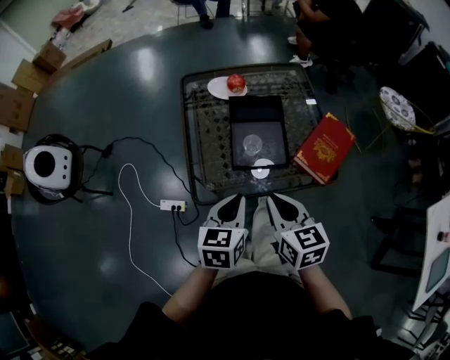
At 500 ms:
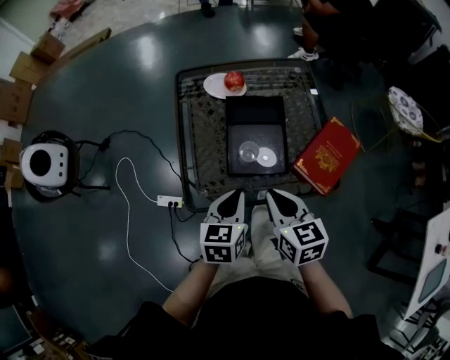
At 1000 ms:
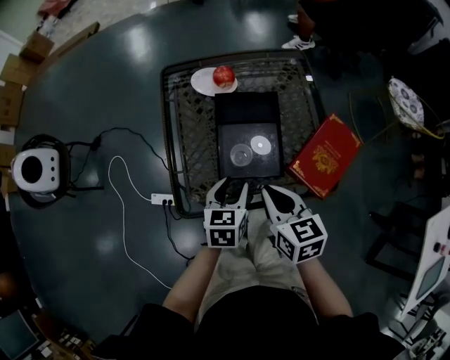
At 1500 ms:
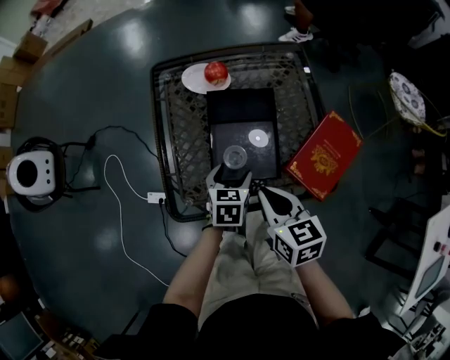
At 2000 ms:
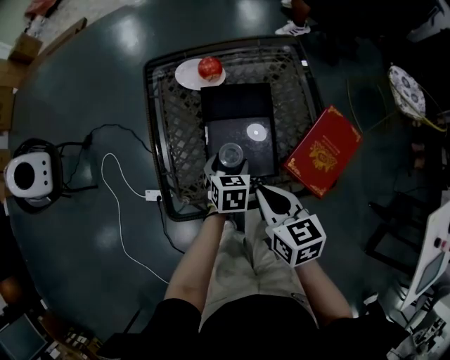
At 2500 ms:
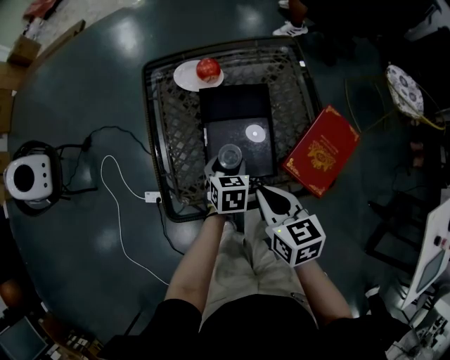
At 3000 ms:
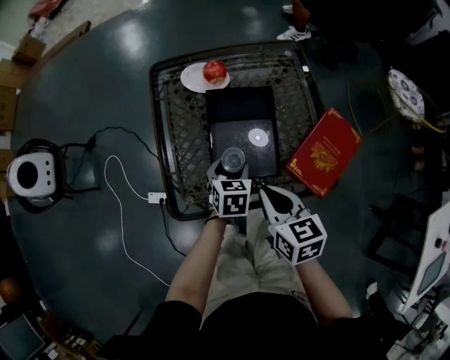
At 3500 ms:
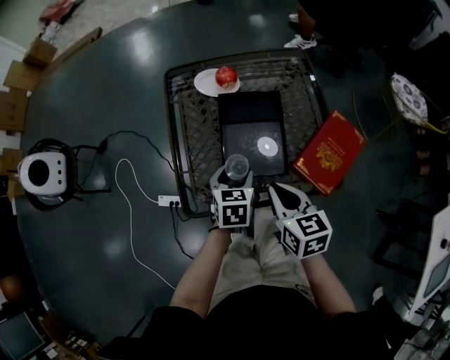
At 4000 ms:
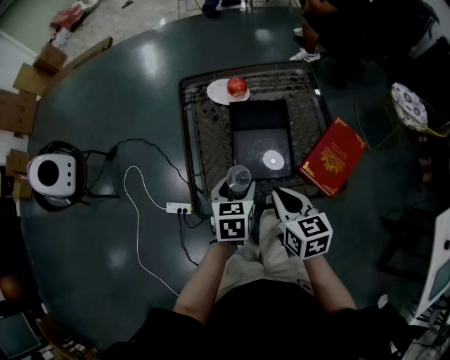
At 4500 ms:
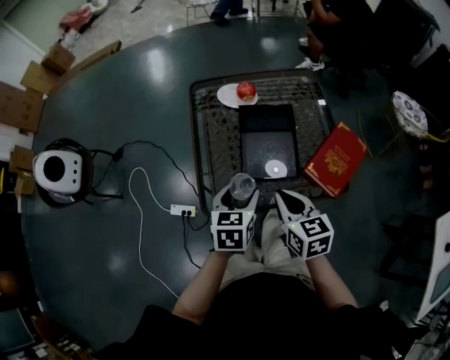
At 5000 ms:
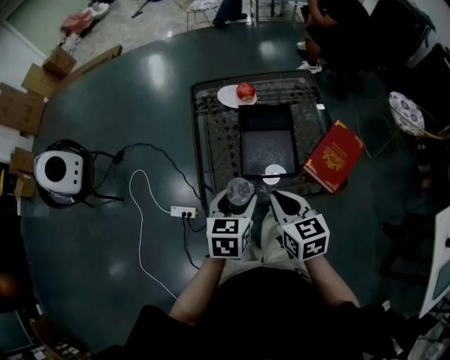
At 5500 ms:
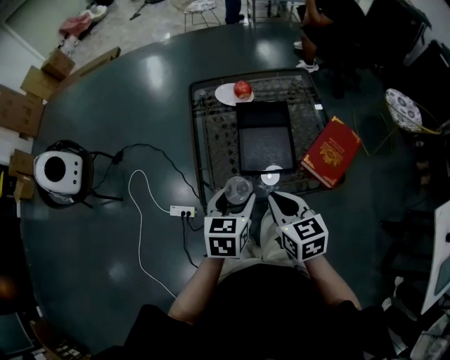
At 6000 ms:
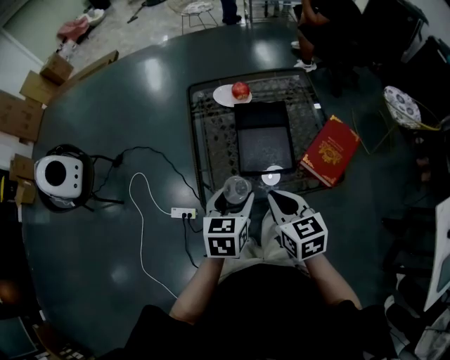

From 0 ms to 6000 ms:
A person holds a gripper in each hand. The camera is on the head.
From 0 ms to 2000 ms: The right gripper is displaced forward and downward by some 15 cm. Meanwhile the left gripper heads downward and forward, covering about 25 cm, changes its angle by about 20 degrees, and opens up.
From 2000 ms to 4000 ms: The left gripper shifts about 15 cm upward, backward and to the left.
From 4000 ms to 6000 ms: The right gripper shifts some 5 cm backward, while the left gripper heads backward and upward, covering roughly 10 cm.

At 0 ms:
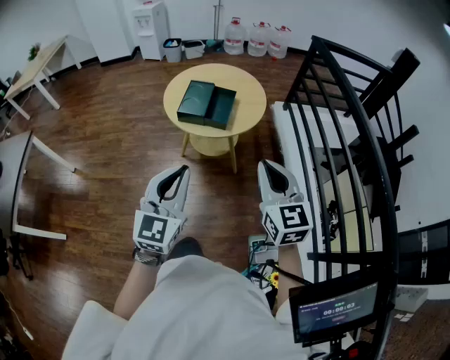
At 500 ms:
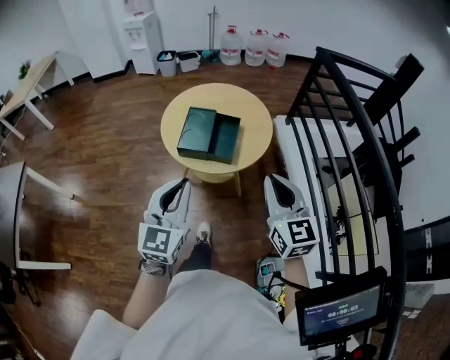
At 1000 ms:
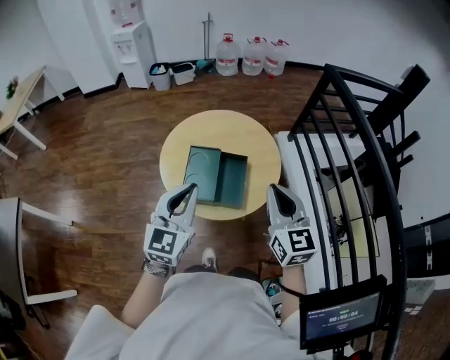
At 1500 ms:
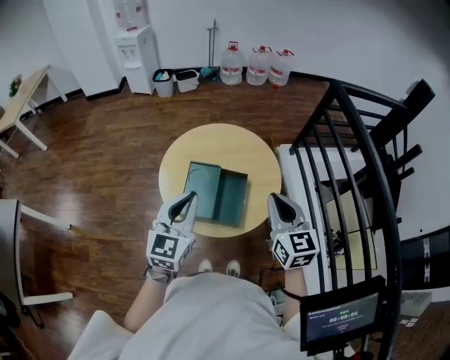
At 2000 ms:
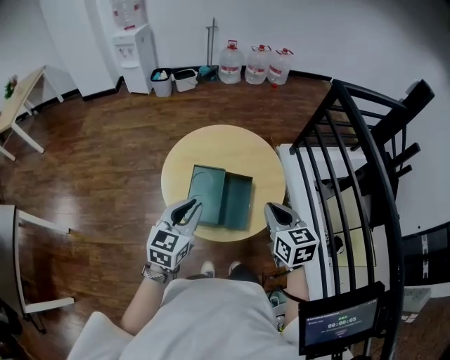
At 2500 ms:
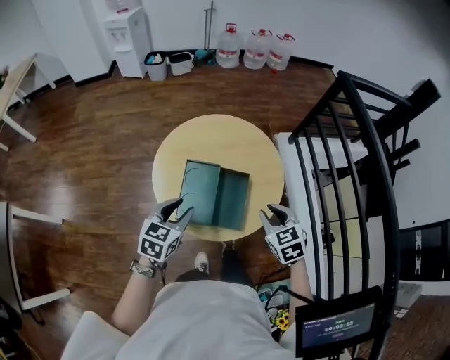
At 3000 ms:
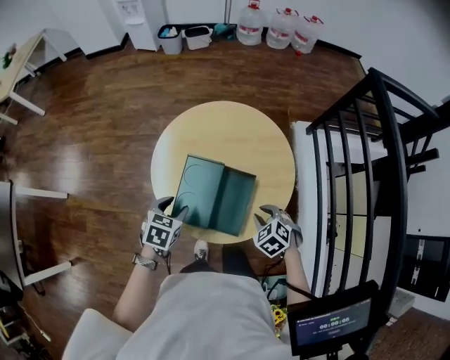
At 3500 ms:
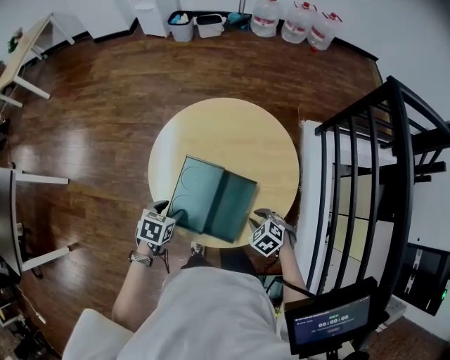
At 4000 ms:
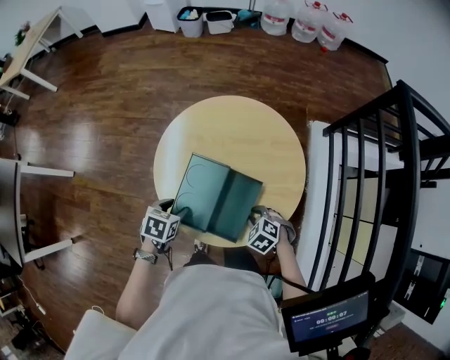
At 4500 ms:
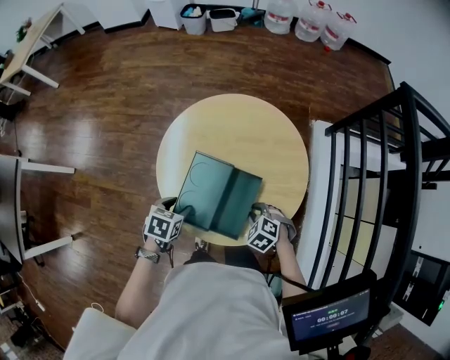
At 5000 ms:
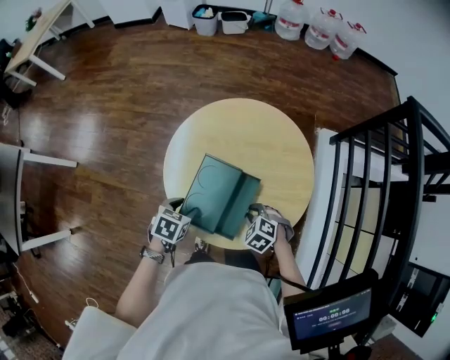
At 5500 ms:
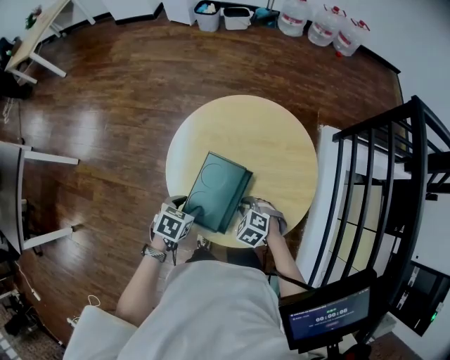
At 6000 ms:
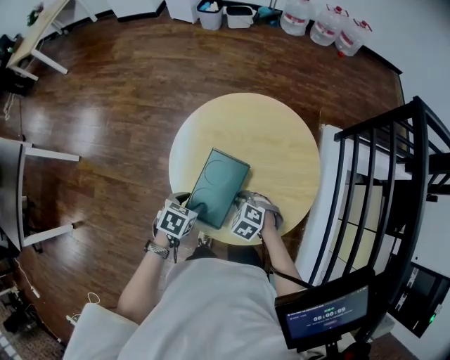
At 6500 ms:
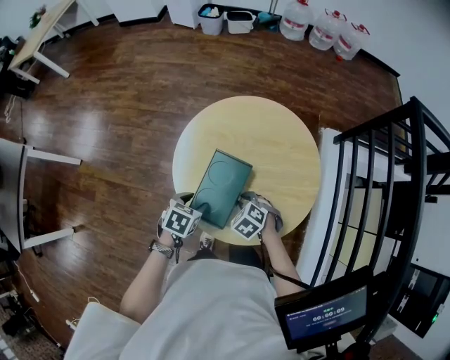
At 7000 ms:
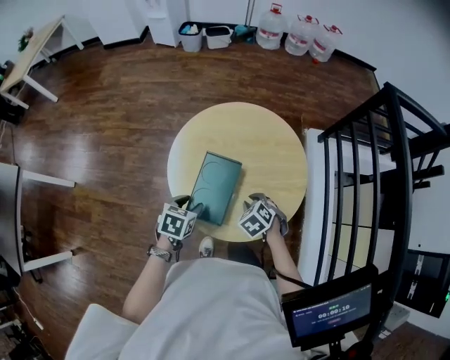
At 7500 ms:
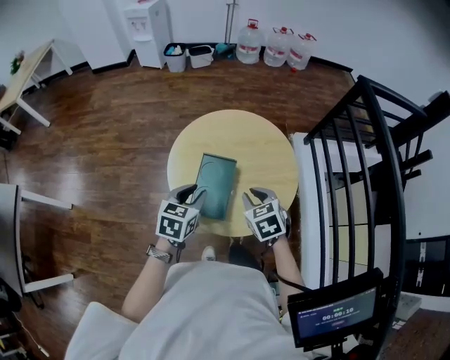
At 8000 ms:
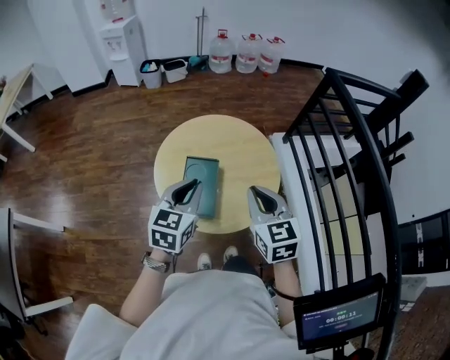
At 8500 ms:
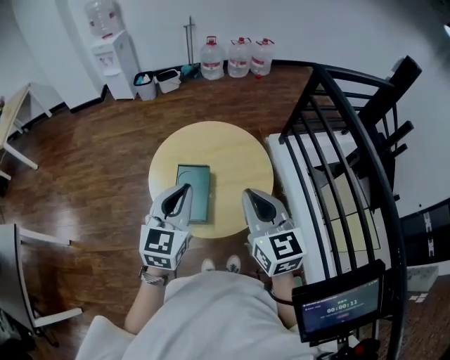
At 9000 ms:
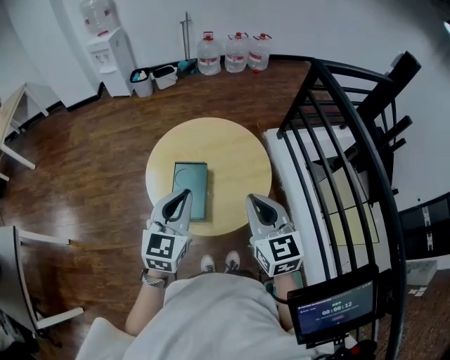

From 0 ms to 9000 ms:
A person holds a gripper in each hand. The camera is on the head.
From 0 ms to 2000 ms: The grippers both shift forward by roughly 30 cm. The left gripper rotates roughly 20 degrees; the right gripper turns by about 20 degrees.
From 2000 ms to 4500 ms: The grippers both shift downward by roughly 25 cm. The left gripper points its fingers roughly 40 degrees further downward, and opens its fingers. The right gripper angles its fingers downward, by approximately 40 degrees.
From 4500 ms to 7000 ms: The right gripper changes place by approximately 10 cm.
From 7000 ms to 9000 ms: The grippers both shift upward by approximately 30 cm. The right gripper tips its fingers upward by roughly 50 degrees; the left gripper tips its fingers upward by roughly 40 degrees, and closes.

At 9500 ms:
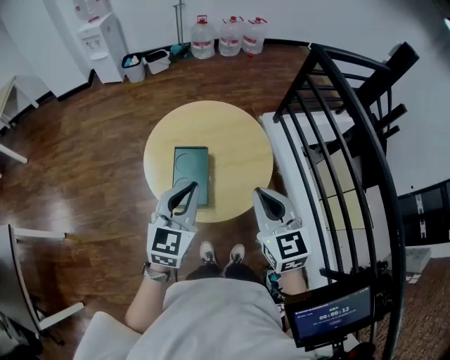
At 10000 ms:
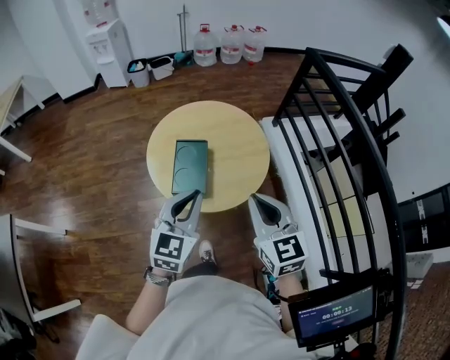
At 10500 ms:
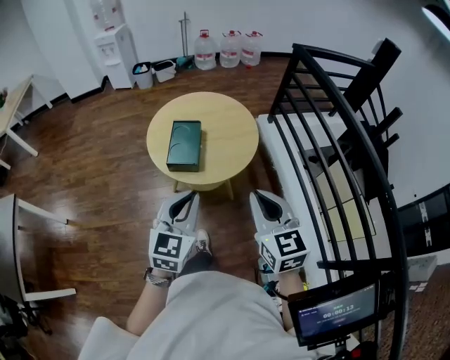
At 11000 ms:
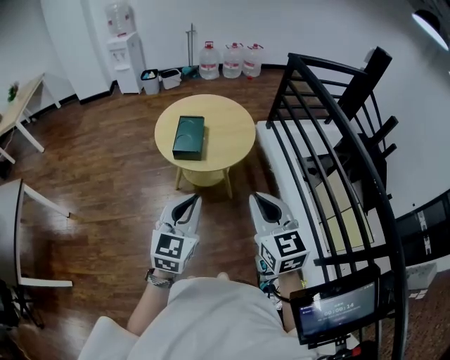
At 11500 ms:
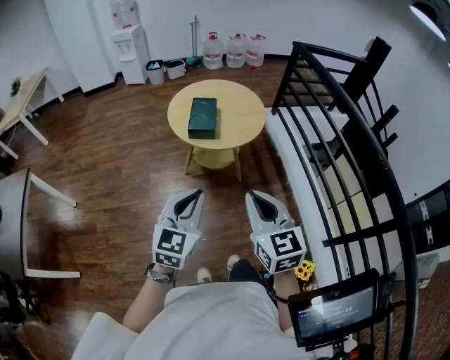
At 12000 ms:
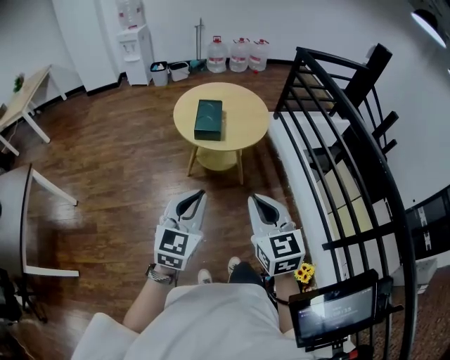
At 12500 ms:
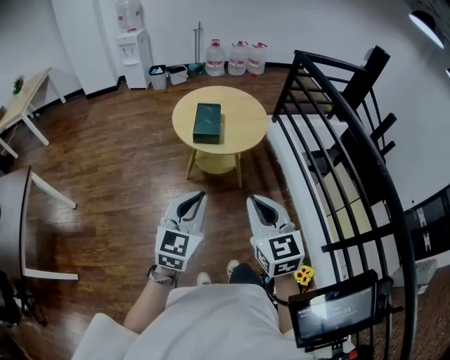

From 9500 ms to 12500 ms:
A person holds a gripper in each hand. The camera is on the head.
From 9500 ms to 11000 ms: The two grippers go approximately 25 cm backward.
From 11000 ms to 12500 ms: The two grippers go roughly 10 cm backward and to the left.

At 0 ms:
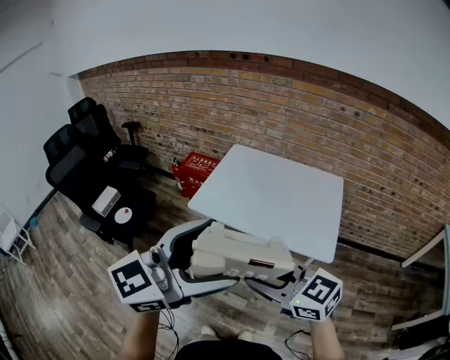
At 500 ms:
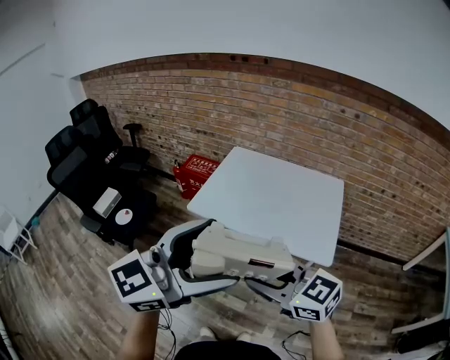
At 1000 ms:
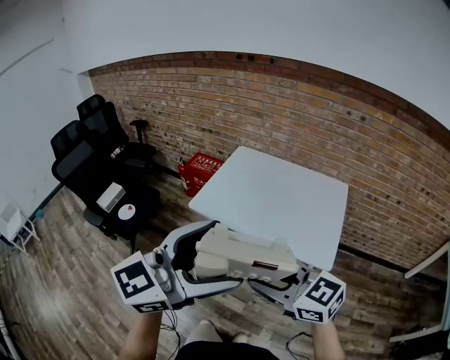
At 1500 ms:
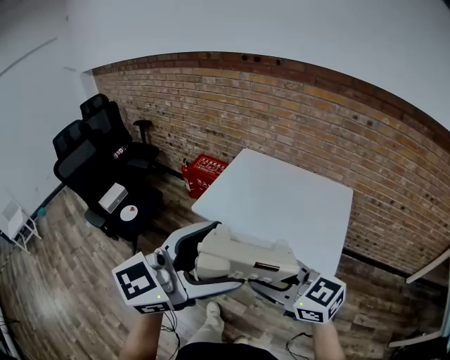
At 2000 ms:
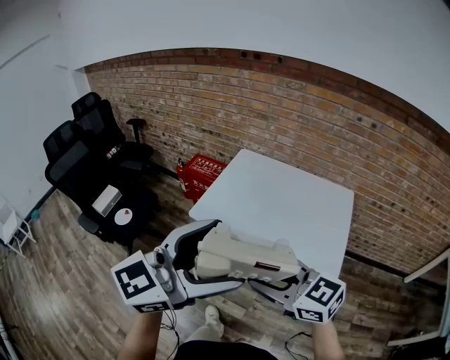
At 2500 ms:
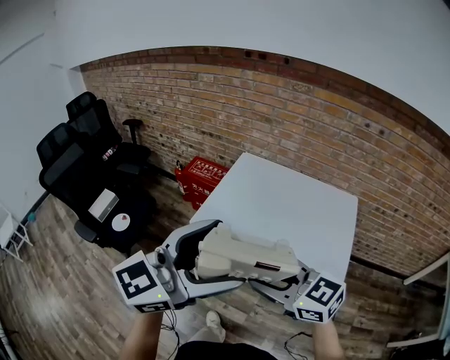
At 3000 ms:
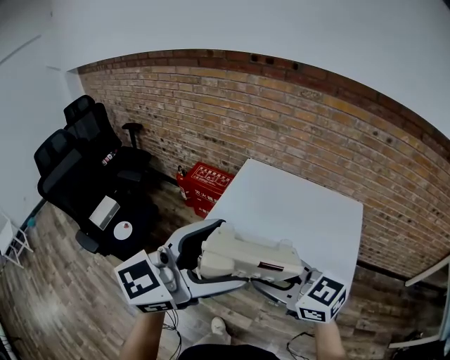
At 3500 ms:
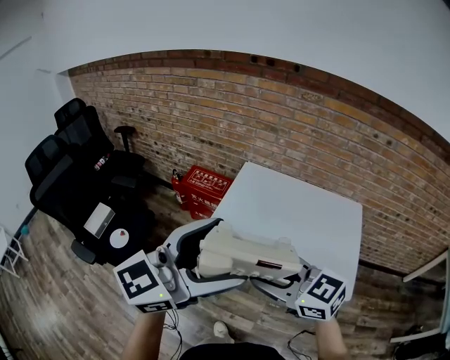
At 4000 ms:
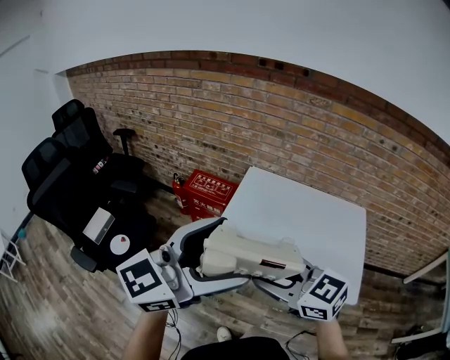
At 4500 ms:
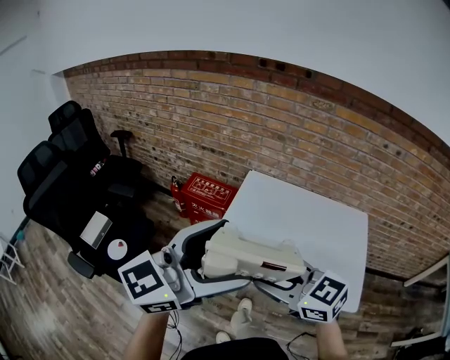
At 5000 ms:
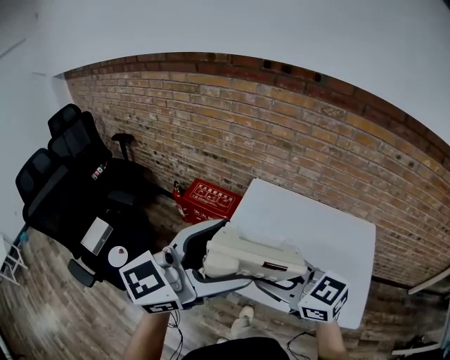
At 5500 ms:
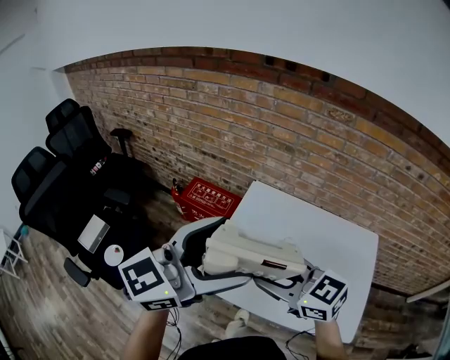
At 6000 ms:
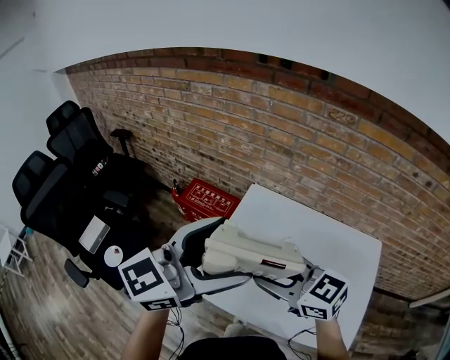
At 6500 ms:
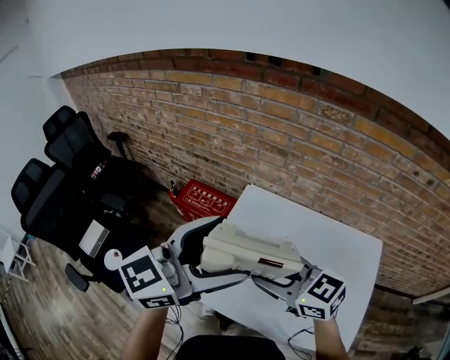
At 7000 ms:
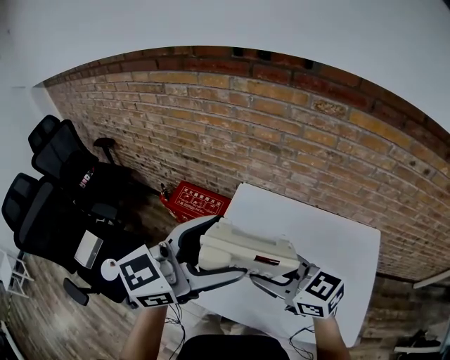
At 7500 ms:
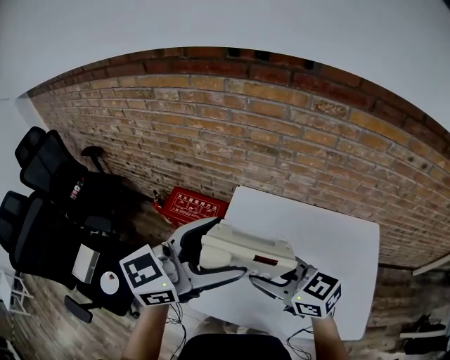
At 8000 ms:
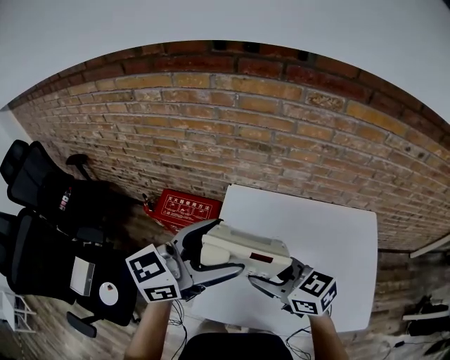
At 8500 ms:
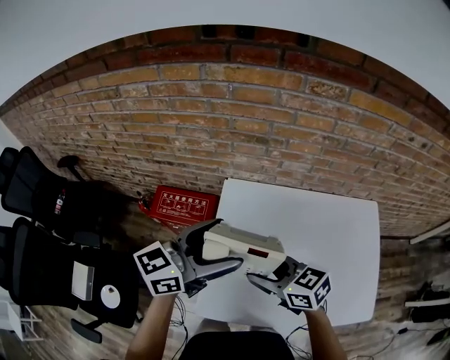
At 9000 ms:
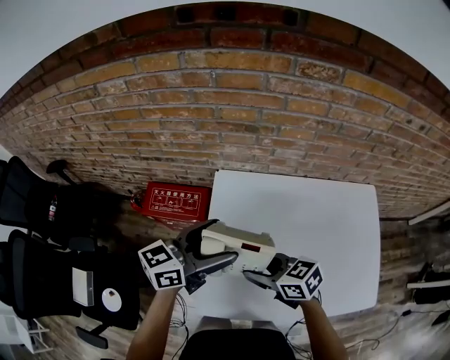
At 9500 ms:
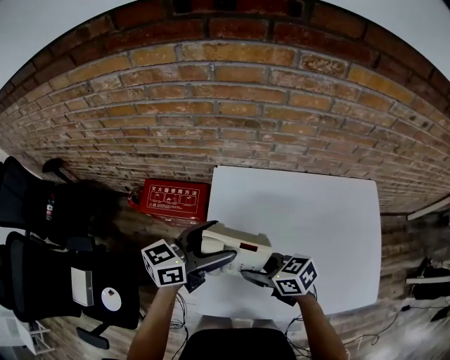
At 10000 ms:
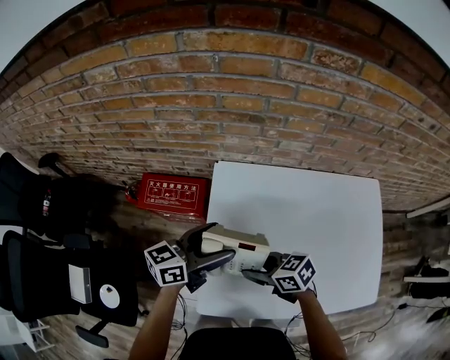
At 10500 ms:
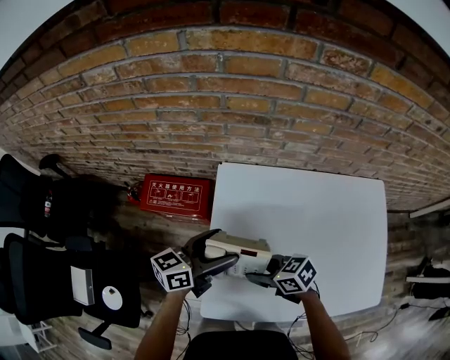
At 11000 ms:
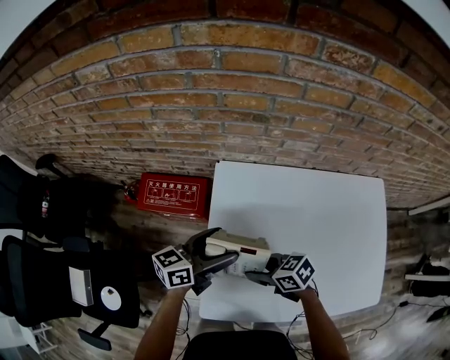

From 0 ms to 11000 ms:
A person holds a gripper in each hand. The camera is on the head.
From 0 ms to 2000 ms: The grippers both shift forward by about 10 cm.
From 2000 ms to 3500 ms: Both grippers move forward and to the left, some 15 cm.
From 3500 ms to 5500 ms: Both grippers travel together forward, about 20 cm.
From 5500 ms to 7500 ms: Both grippers move forward, approximately 10 cm.
From 7500 ms to 9000 ms: Both grippers move downward, about 15 cm. The left gripper swivels some 20 degrees. Meanwhile the right gripper rotates some 20 degrees.
From 9000 ms to 11000 ms: Both grippers travel together downward, roughly 10 cm.
